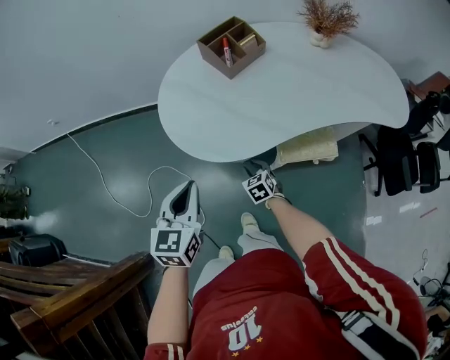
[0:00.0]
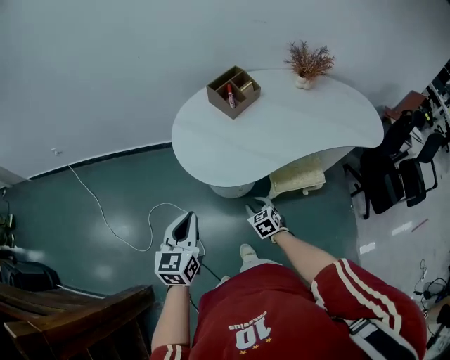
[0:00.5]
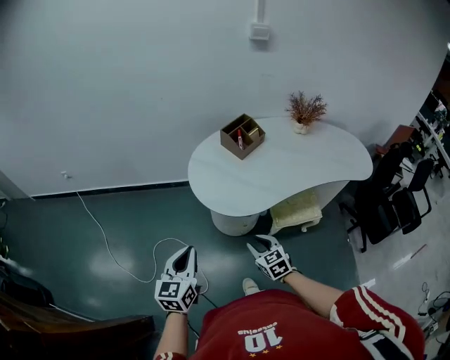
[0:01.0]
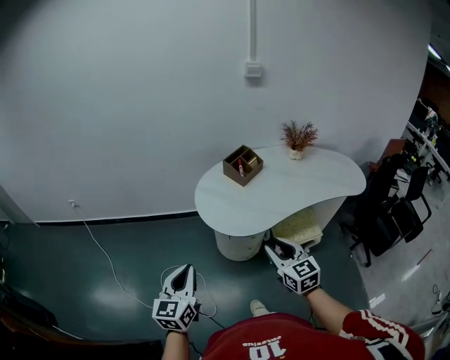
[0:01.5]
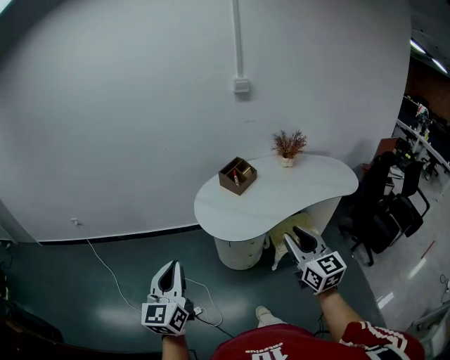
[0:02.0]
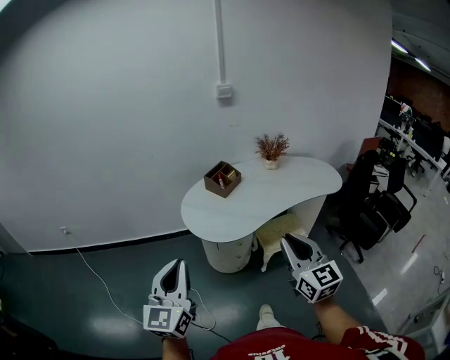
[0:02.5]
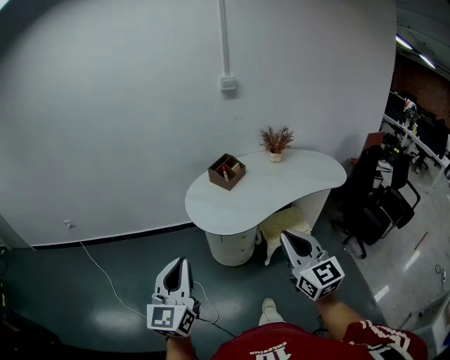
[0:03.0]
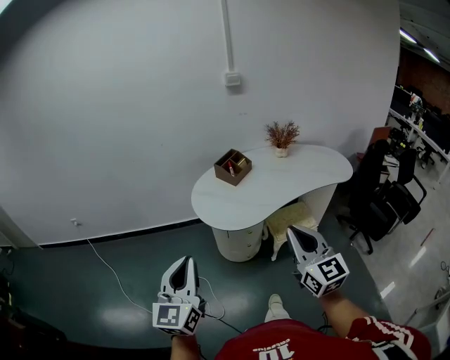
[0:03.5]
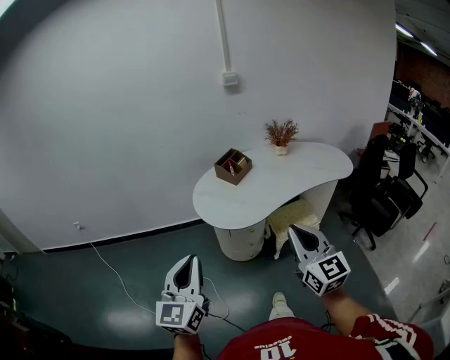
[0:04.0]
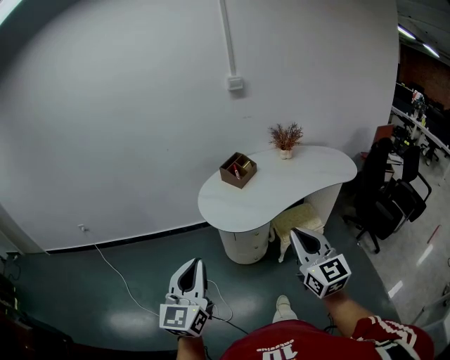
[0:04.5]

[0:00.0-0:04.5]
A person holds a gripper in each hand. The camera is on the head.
0:00.0 to 0:02.0: The left gripper goes roughly 35 cm upward, backward and to the left, and turns by some 30 degrees. Meanwhile the right gripper shifts approximately 60 cm upward and backward, and tips its fingers upward by roughly 50 degrees.
0:02.0 to 0:04.5: The left gripper goes approximately 10 cm backward and to the right, while the right gripper goes some 10 cm backward, and closes up.

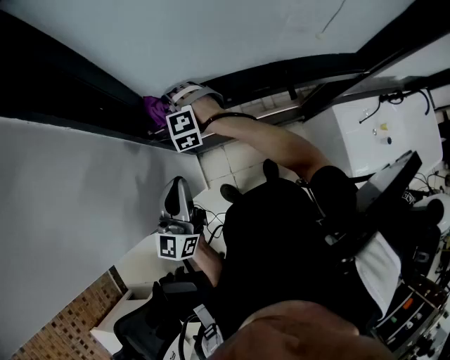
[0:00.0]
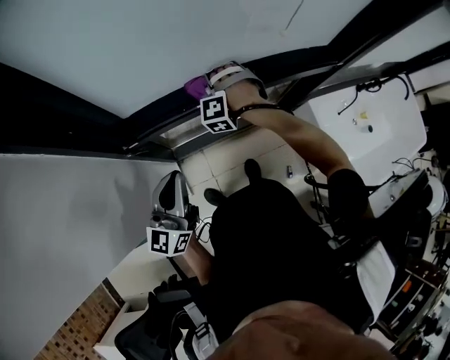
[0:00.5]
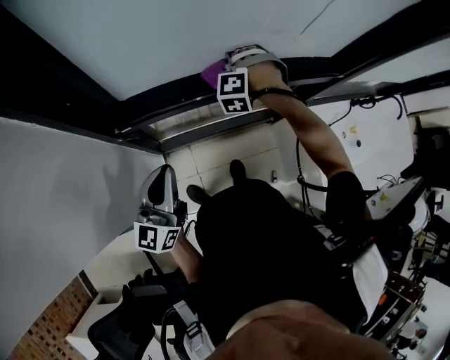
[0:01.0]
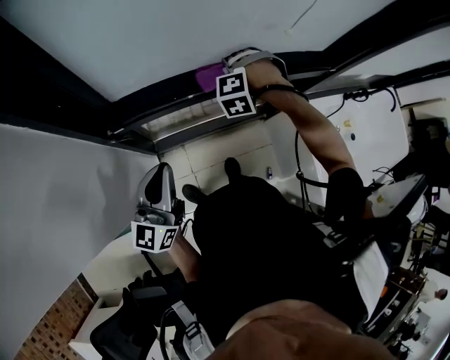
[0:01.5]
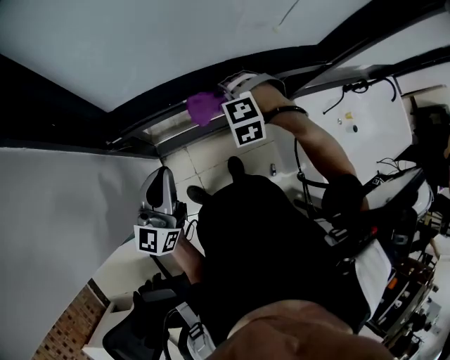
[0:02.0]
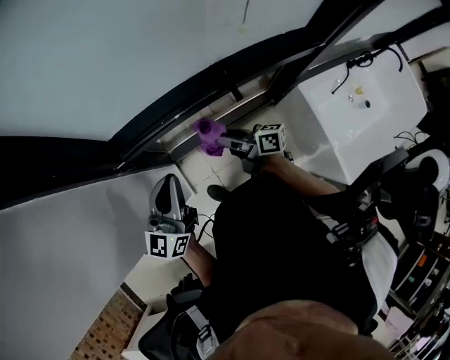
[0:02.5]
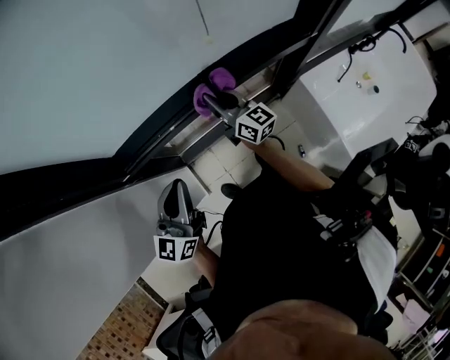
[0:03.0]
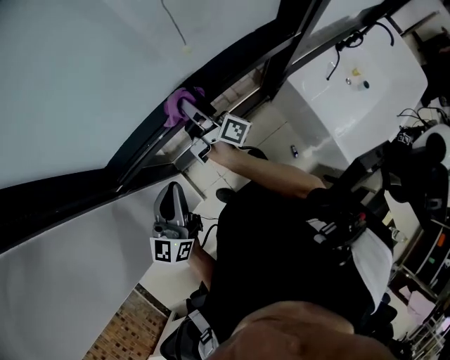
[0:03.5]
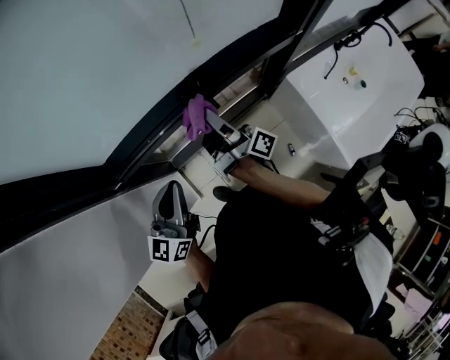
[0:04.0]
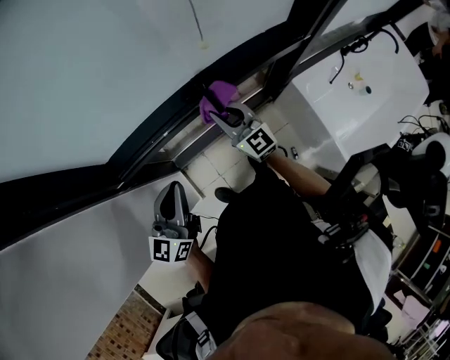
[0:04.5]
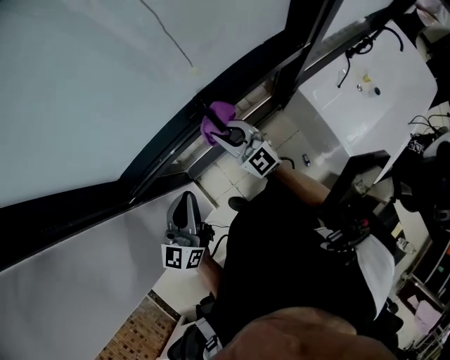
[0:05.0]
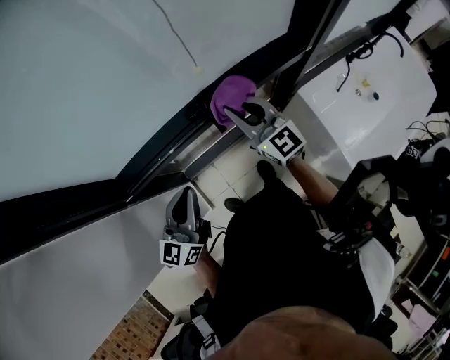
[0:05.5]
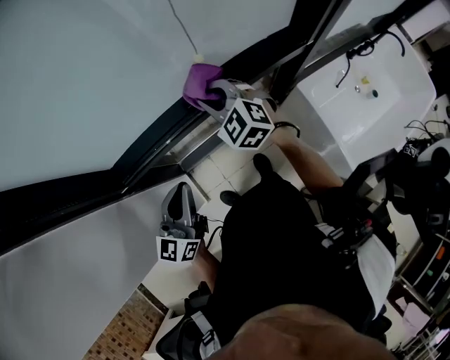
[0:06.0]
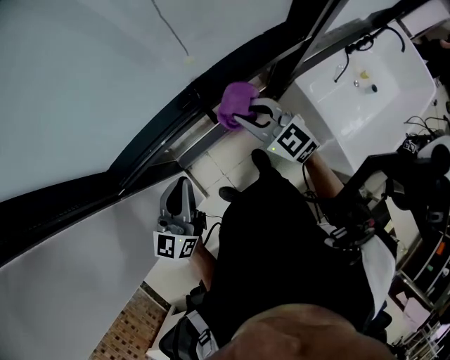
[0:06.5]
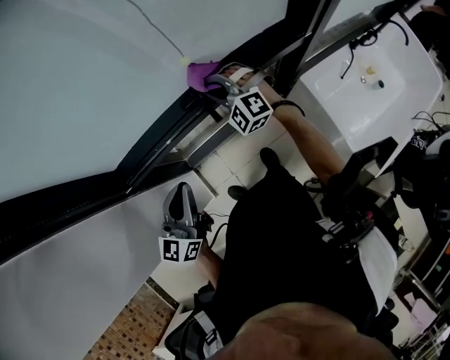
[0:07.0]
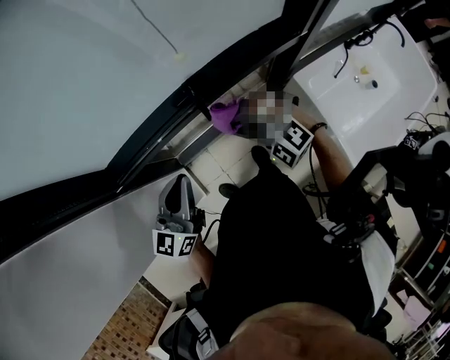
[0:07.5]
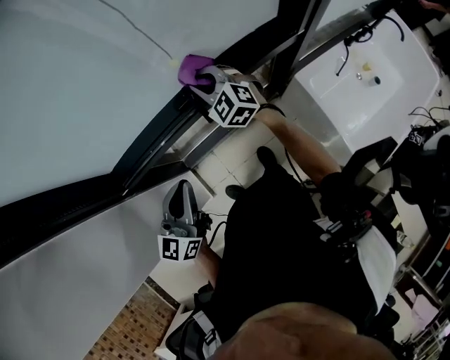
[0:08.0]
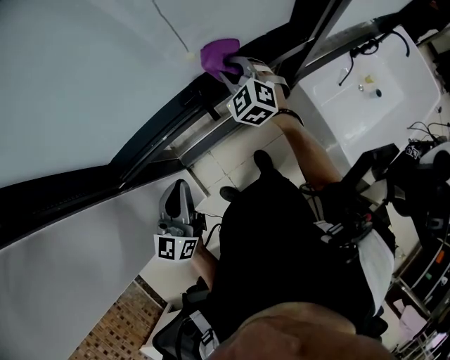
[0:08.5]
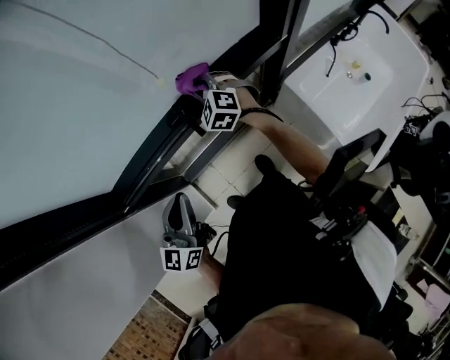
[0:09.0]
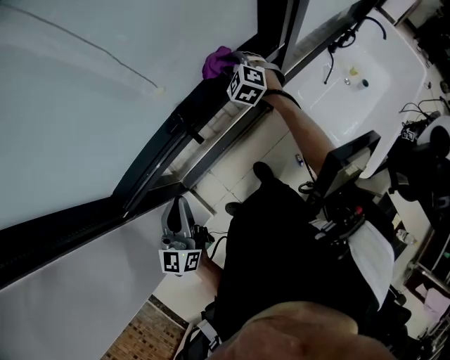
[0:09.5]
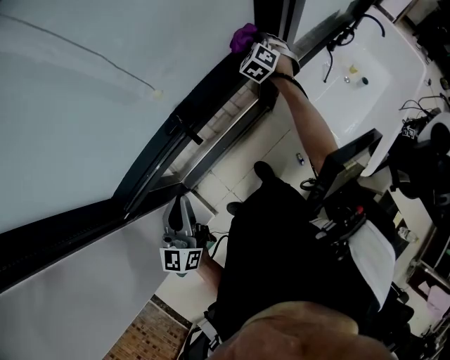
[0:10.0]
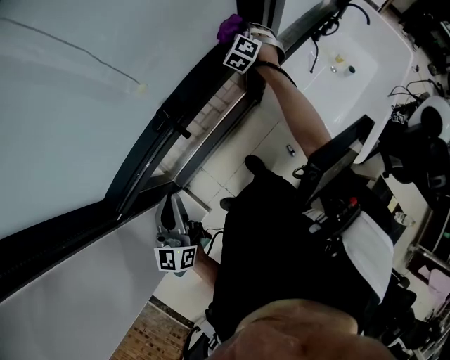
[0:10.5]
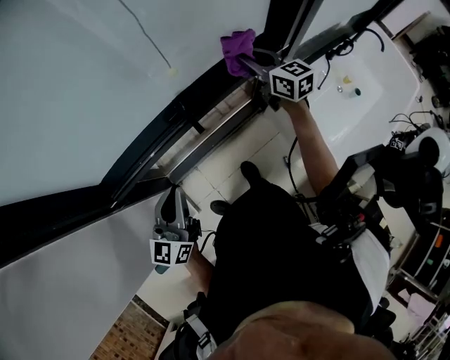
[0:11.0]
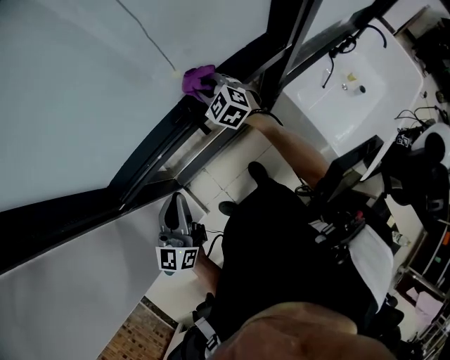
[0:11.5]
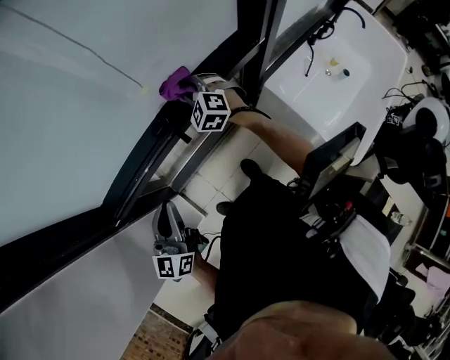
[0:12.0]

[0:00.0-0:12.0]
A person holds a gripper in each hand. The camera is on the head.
0:00.0 to 0:02.0: The left gripper shifts by about 5 cm; the right gripper changes place by about 30 cm, and rotates about 20 degrees.
0:02.0 to 0:04.0: The right gripper moves forward and backward over some 15 cm, changing direction 2 times, and angles its fingers upward, by approximately 90 degrees. The left gripper heads to the right, covering roughly 10 cm.
0:04.0 to 0:06.0: The right gripper heads forward, covering about 5 cm, moves roughly 5 cm downward and comes back, and rolls counterclockwise, seen from behind, by about 110 degrees.
0:06.0 to 0:08.0: The right gripper goes forward and backward, some 15 cm each way, reversing 3 times.
0:08.0 to 0:10.0: The right gripper moves some 30 cm, and turns by approximately 50 degrees.
0:10.0 to 0:12.0: The right gripper moves approximately 10 cm upward and comes back, and swivels roughly 30 degrees.

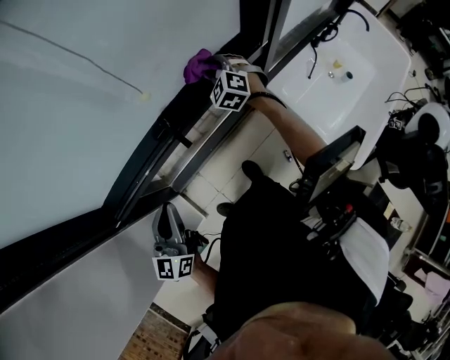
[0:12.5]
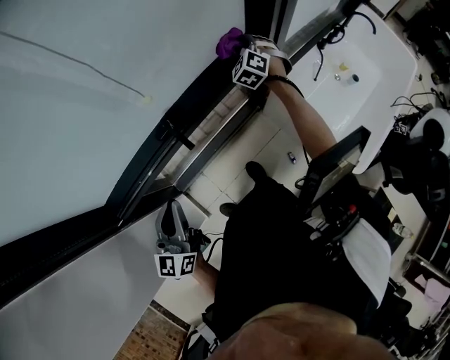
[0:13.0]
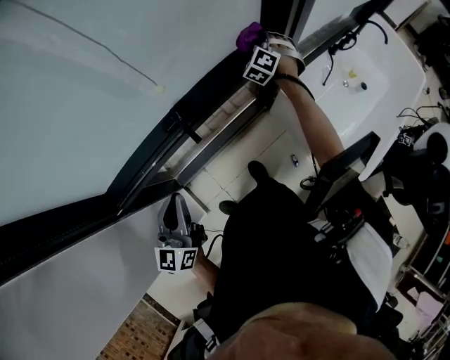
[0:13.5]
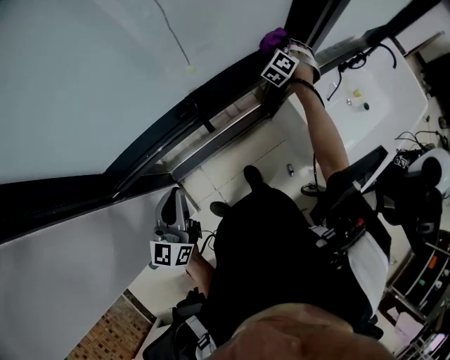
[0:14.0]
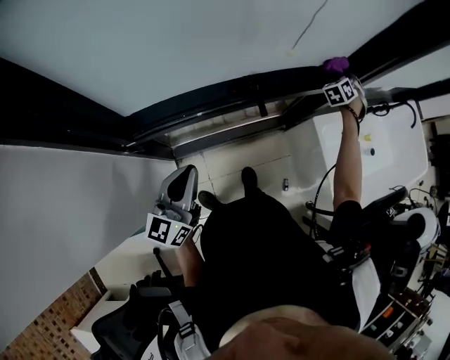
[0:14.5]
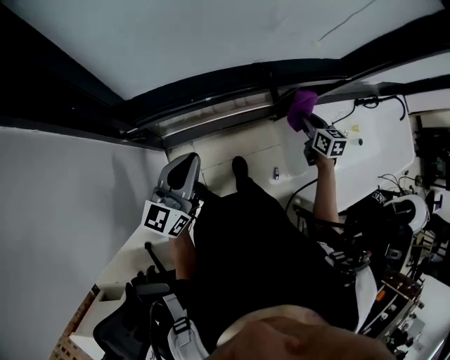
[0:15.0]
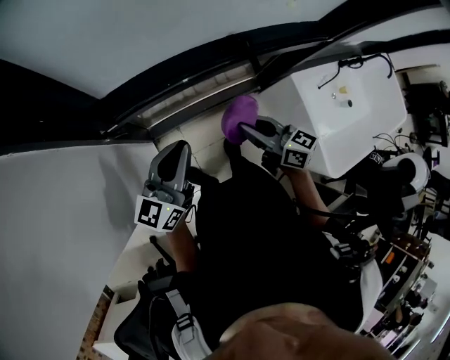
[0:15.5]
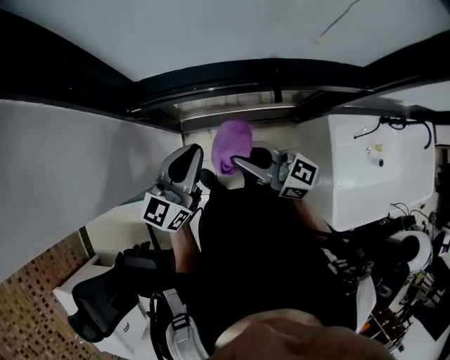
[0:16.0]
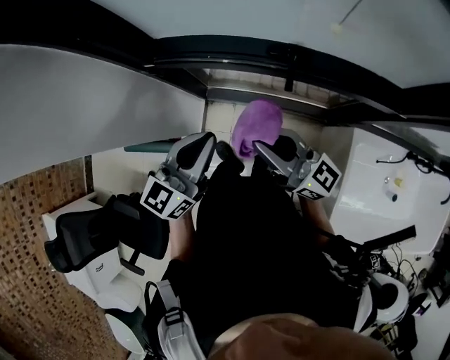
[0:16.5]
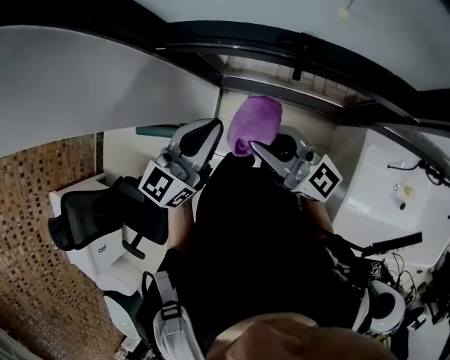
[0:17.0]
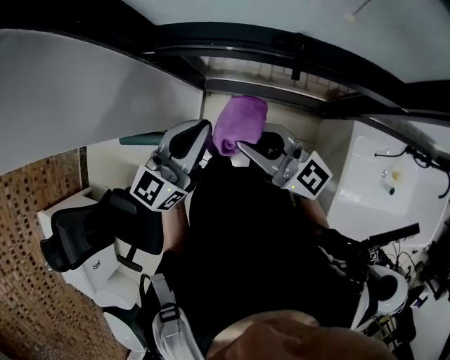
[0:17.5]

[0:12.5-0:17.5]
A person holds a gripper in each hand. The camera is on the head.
0:12.5 to 0:15.0: The left gripper shifts by approximately 10 cm. Meanwhile the right gripper ends up some 20 cm from where it was, and rolls clockwise, seen from behind, by some 50 degrees.
0:15.0 to 0:17.5: The left gripper ends up approximately 10 cm from where it was. The right gripper changes place by some 30 cm, and angles its fingers upward, by roughly 50 degrees.

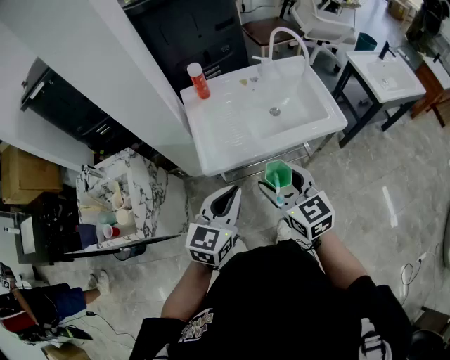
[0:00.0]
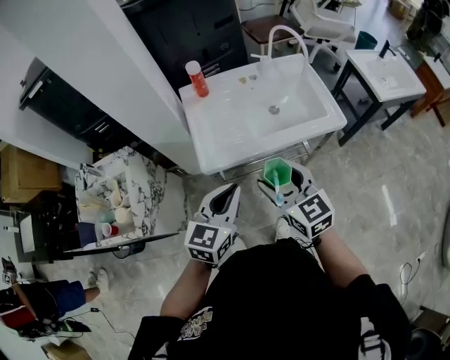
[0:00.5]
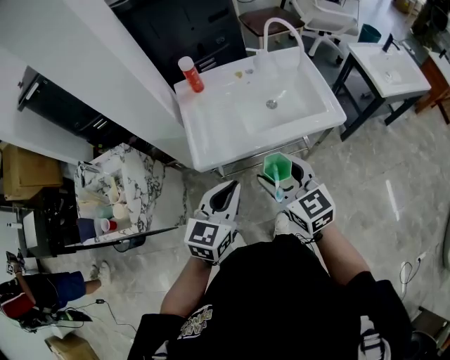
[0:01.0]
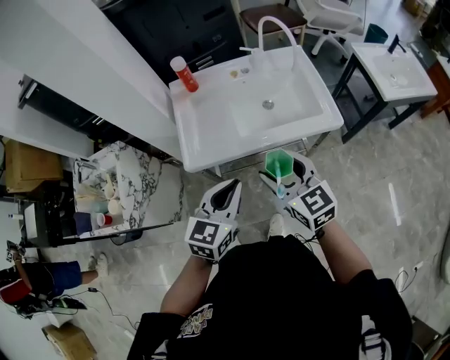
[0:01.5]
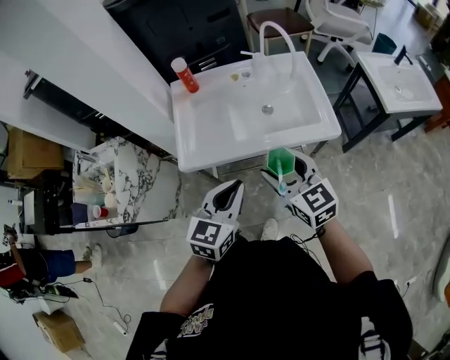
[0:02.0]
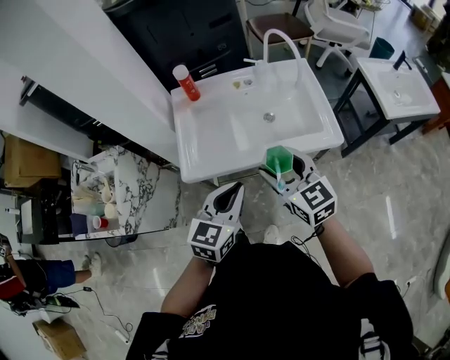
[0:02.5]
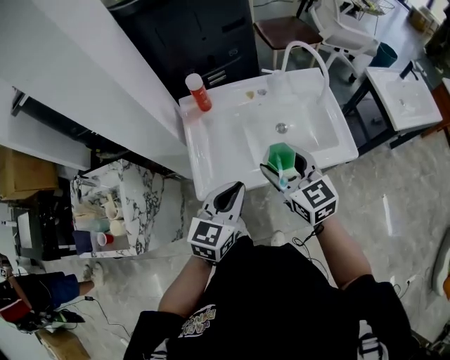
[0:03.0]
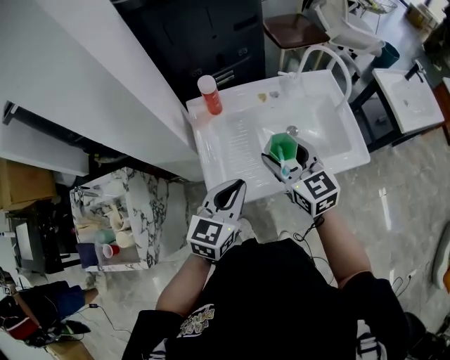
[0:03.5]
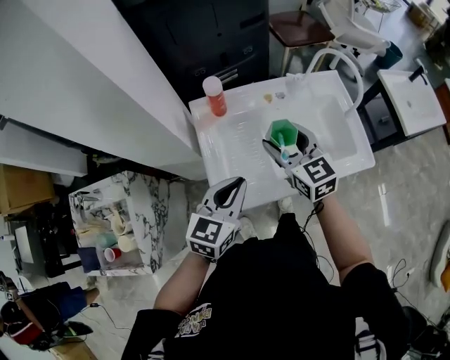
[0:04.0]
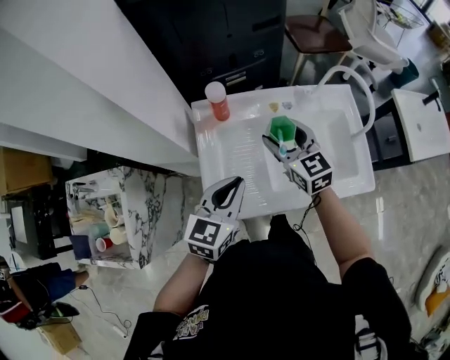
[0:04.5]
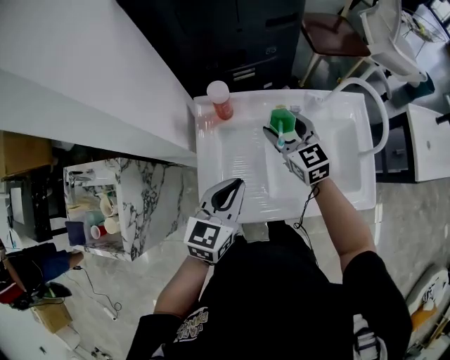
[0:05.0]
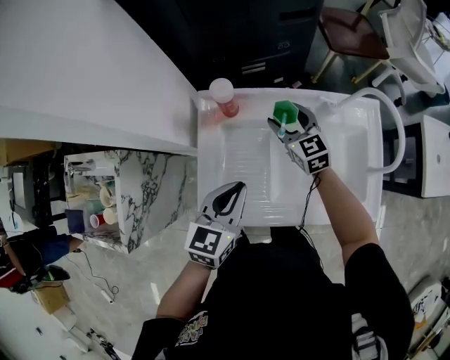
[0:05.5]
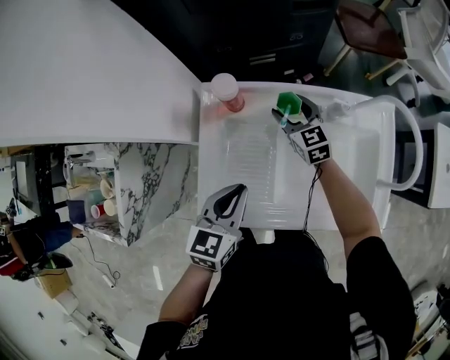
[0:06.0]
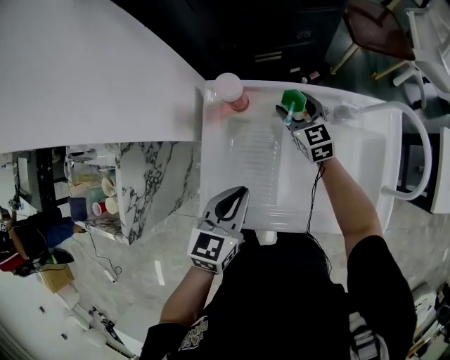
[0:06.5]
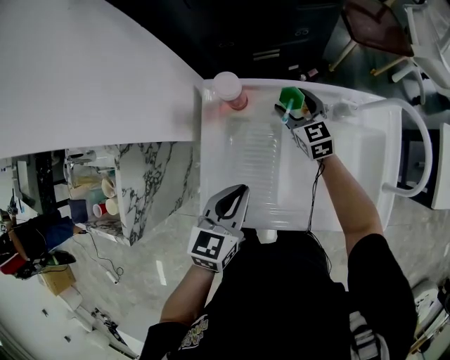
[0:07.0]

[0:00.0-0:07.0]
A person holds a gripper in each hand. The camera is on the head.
0:00.0 to 0:02.0: The left gripper shifts roughly 15 cm to the right. Meanwhile the right gripper travels to the right and forward by approximately 15 cm.
0:02.0 to 0:03.5: Both grippers travel together forward and to the left, about 25 cm.
0:03.5 to 0:05.0: The left gripper travels forward by some 10 cm. Meanwhile the right gripper heads forward and downward, covering roughly 20 cm.
0:05.0 to 0:07.0: The right gripper heads downward and forward, covering some 15 cm. The left gripper travels downward by roughly 5 cm.
